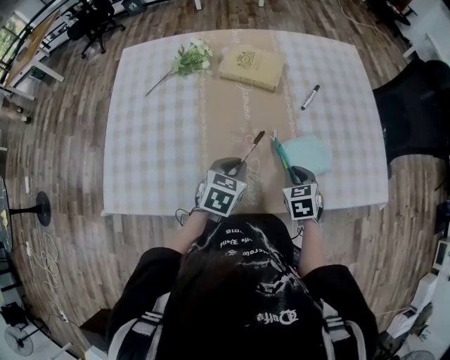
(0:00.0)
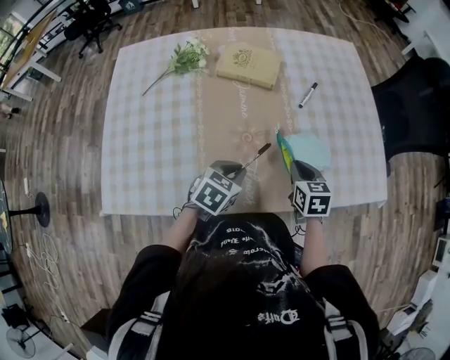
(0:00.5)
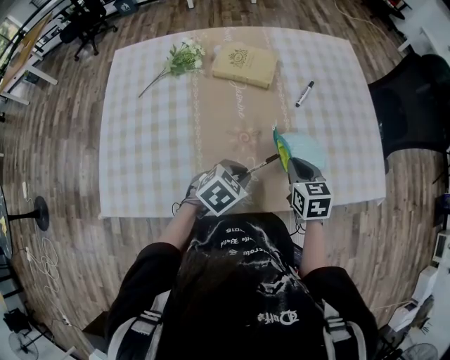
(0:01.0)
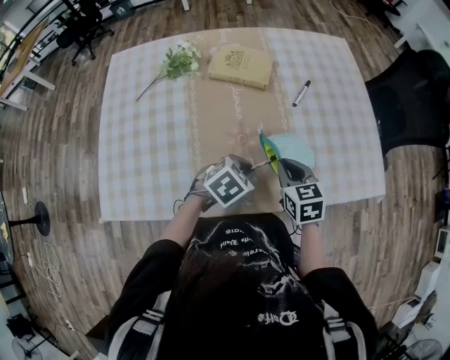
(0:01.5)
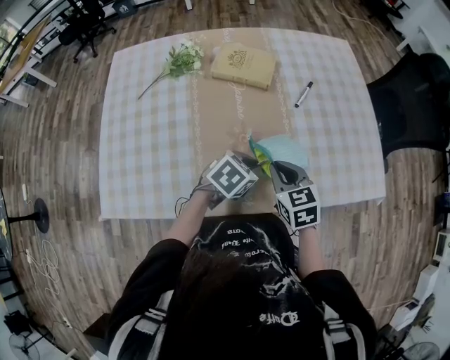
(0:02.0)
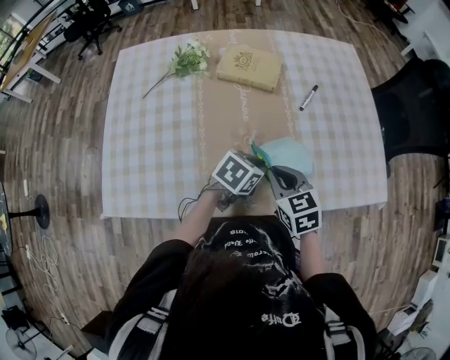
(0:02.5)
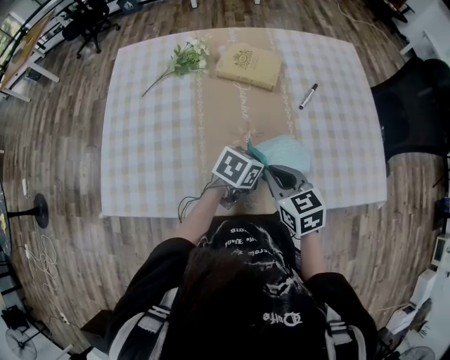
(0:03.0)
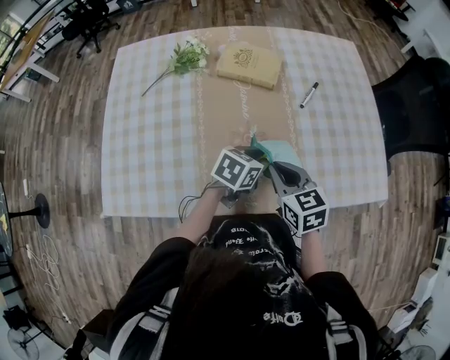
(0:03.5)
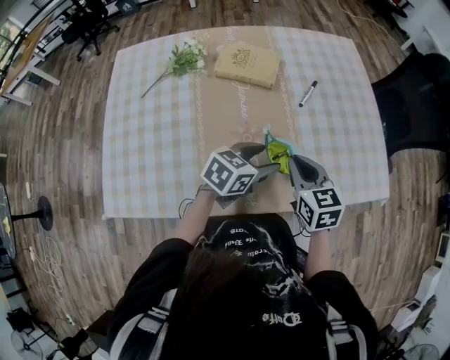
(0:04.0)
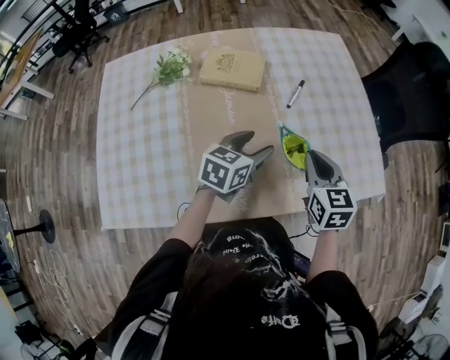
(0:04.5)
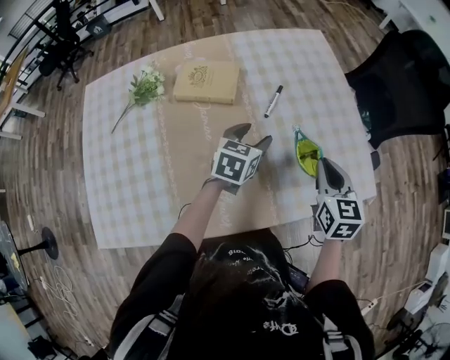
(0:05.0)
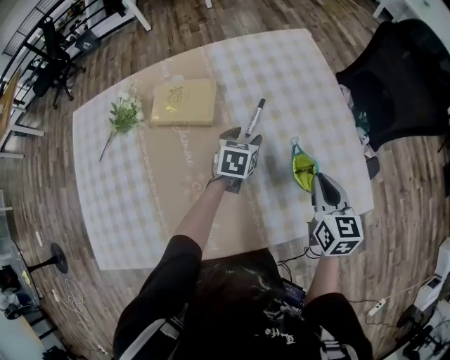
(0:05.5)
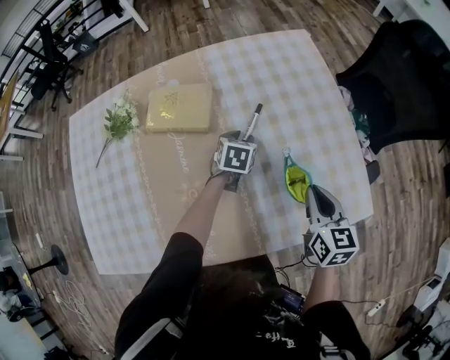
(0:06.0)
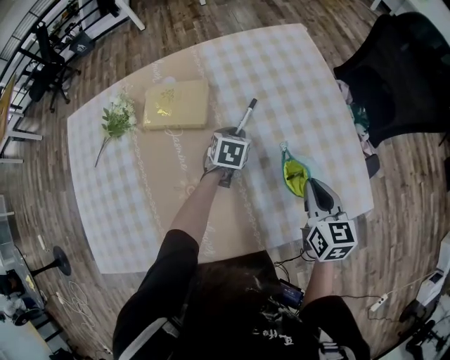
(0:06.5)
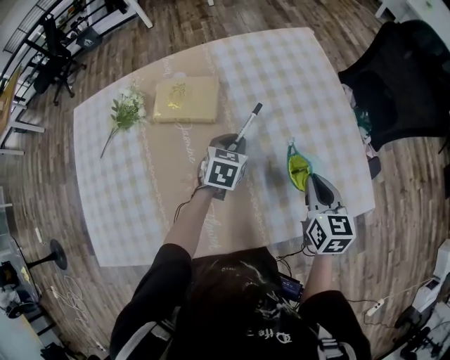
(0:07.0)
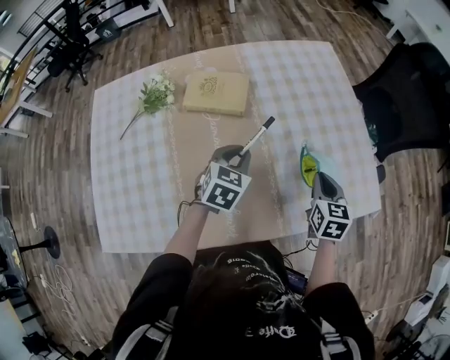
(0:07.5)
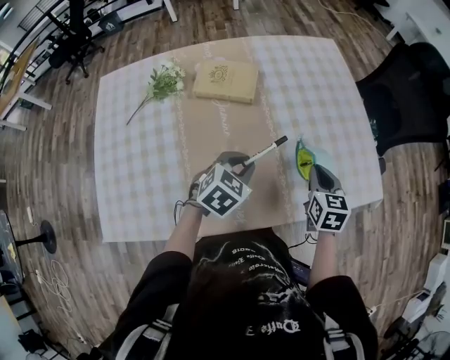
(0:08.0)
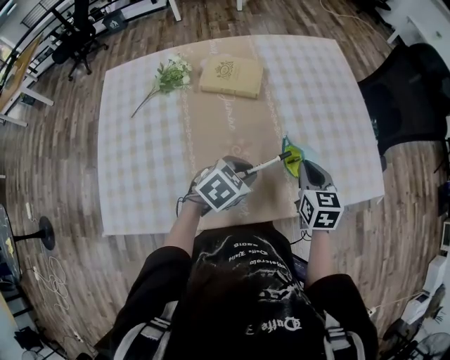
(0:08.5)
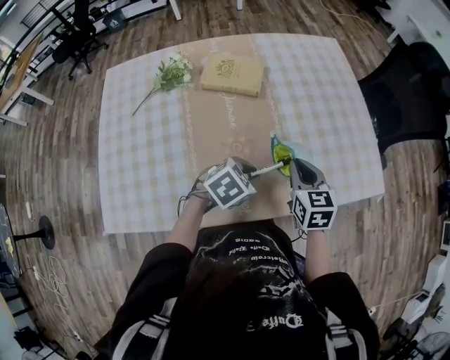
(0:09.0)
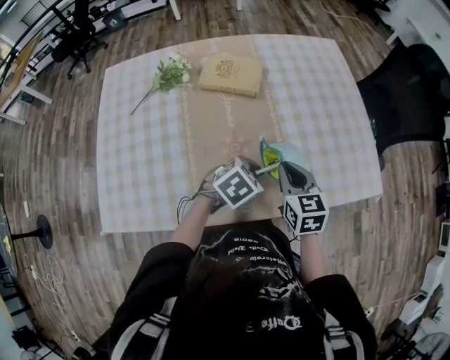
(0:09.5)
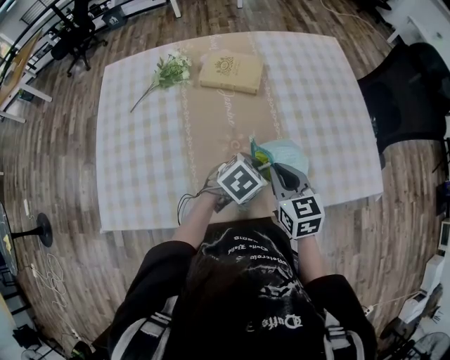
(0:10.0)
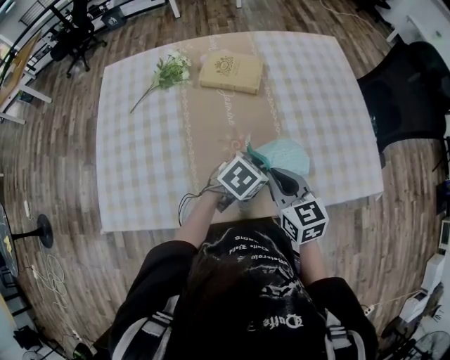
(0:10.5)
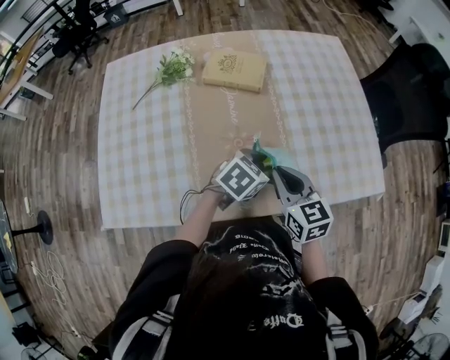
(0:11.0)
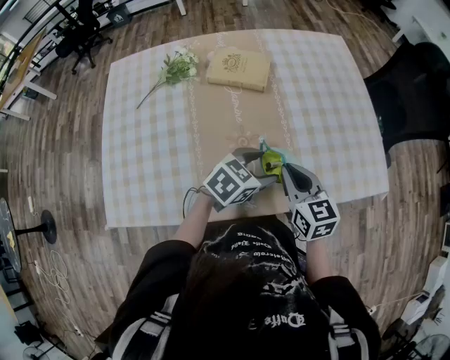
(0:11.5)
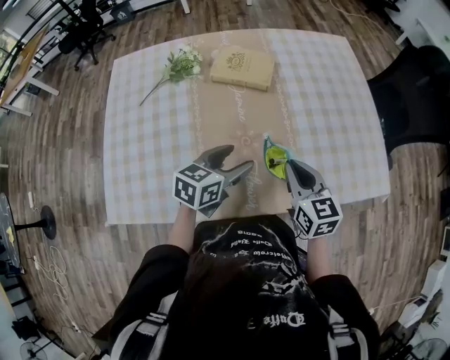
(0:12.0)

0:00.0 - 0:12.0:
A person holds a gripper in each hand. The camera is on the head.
0:00.0 - 0:02.0: The right gripper shifts some 10 cm upward and to the left, while the left gripper goes roughly 5 cm to the right, and rotates approximately 30 degrees.
0:02.0 - 0:04.0: The right gripper changes place by some 5 cm. The left gripper shifts by approximately 5 cm, swivels some 20 degrees, and opens.
0:04.0 - 0:06.0: The left gripper travels forward and downward by roughly 35 cm, and turns by some 30 degrees. Meanwhile the right gripper goes some 25 cm to the right and forward, and changes its angle by approximately 20 degrees.
0:06.0 - 0:08.0: The right gripper is displaced to the left and backward by some 15 cm. The left gripper is displaced backward and upward by some 30 cm, and changes its angle by some 20 degrees.
0:08.0 - 0:10.0: The right gripper moves to the left and backward, roughly 15 cm, and swivels roughly 20 degrees. Meanwhile the left gripper moves approximately 5 cm.
0:10.0 - 0:12.0: The left gripper moves to the left and upward, roughly 10 cm, changes its angle by about 40 degrees, and opens.

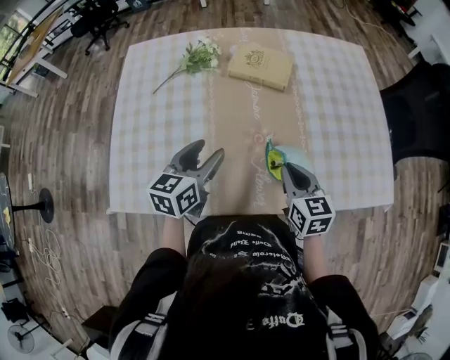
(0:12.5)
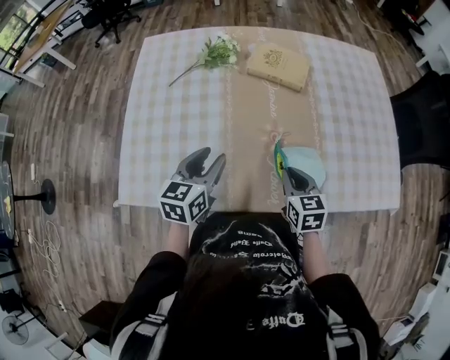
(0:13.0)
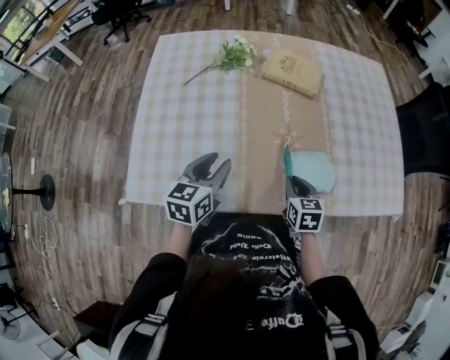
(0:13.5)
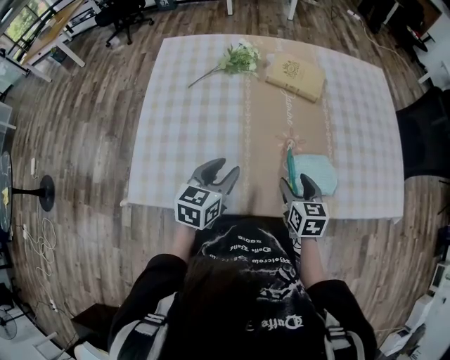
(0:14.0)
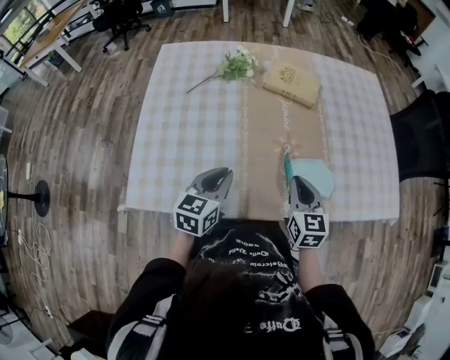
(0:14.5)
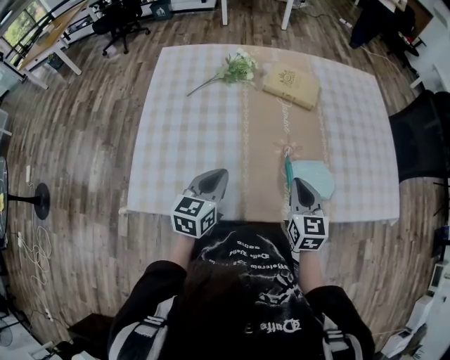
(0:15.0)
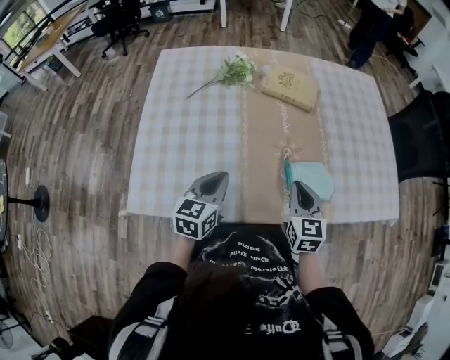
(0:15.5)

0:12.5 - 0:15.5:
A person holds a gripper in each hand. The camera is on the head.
0:12.5 - 0:14.0: The left gripper is displaced to the left and backward by roughly 10 cm. Meanwhile the right gripper shifts roughly 10 cm to the left and downward, and opens up.
0:14.0 - 0:15.5: The right gripper is displaced upward by about 5 cm, and closes up. Meanwhile the left gripper closes.

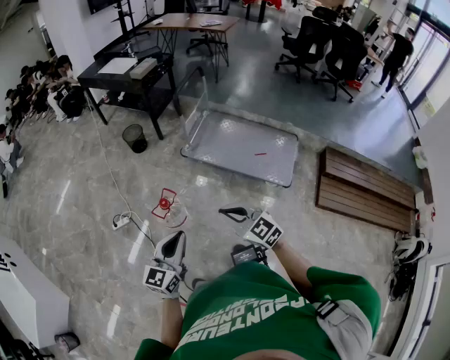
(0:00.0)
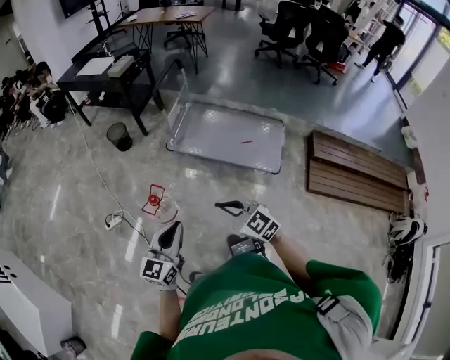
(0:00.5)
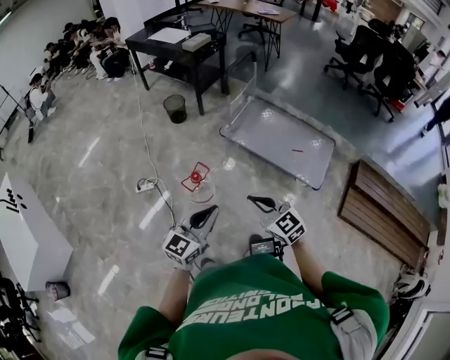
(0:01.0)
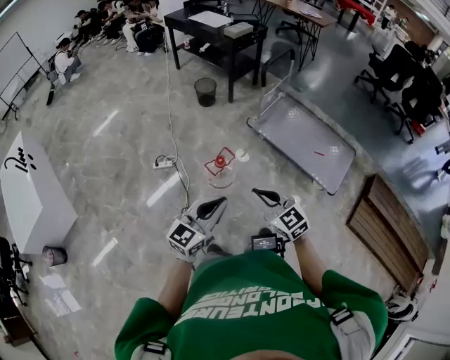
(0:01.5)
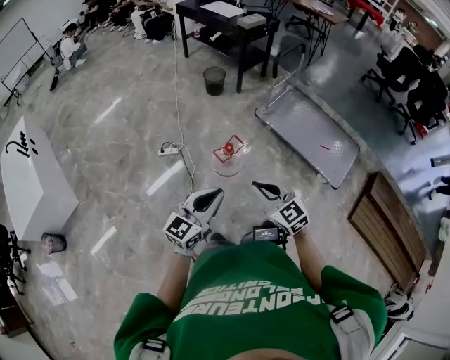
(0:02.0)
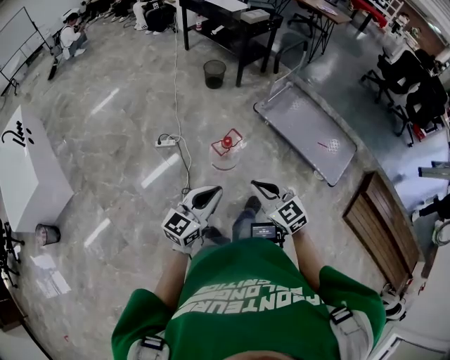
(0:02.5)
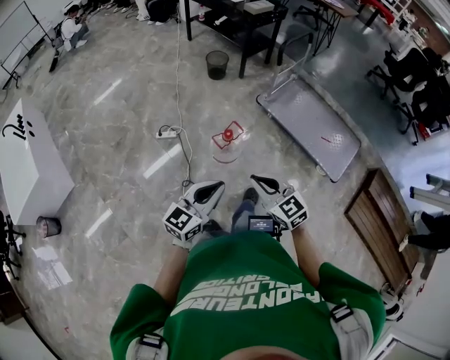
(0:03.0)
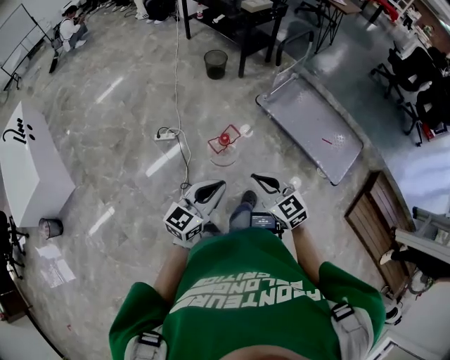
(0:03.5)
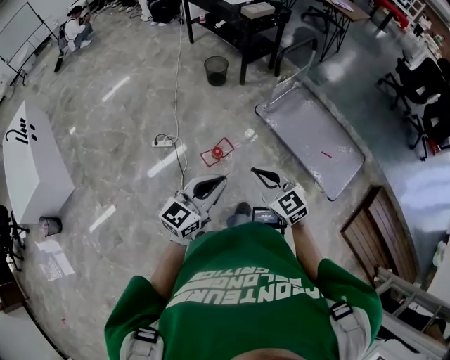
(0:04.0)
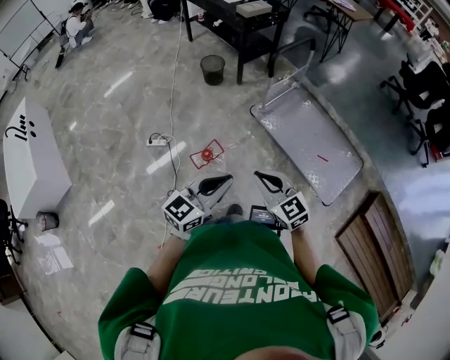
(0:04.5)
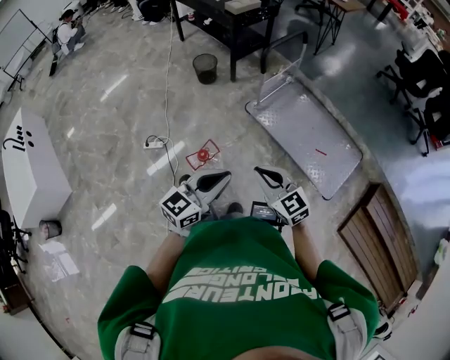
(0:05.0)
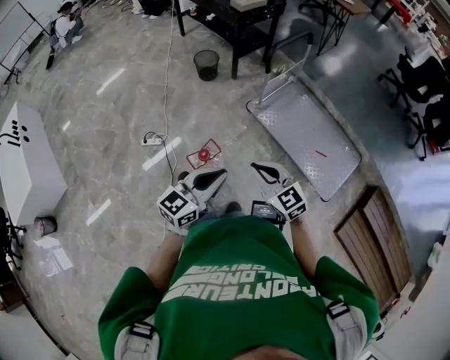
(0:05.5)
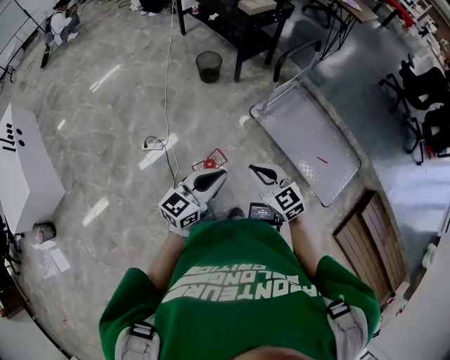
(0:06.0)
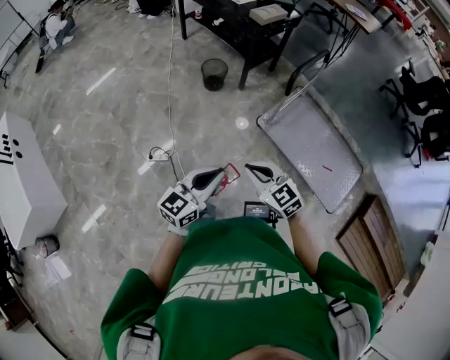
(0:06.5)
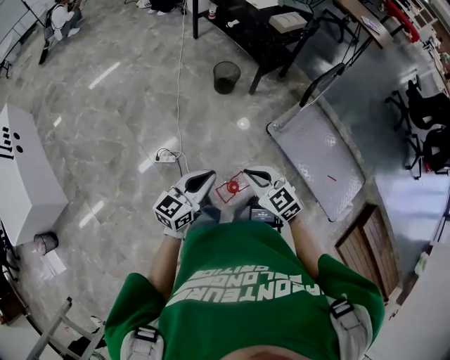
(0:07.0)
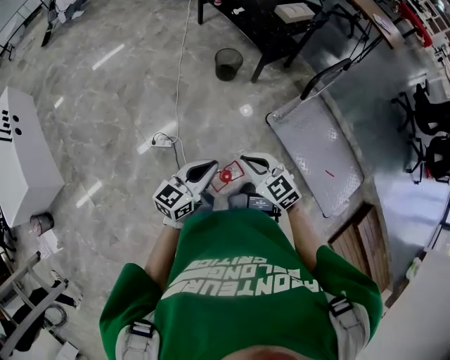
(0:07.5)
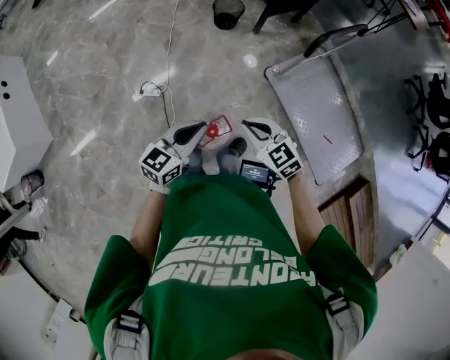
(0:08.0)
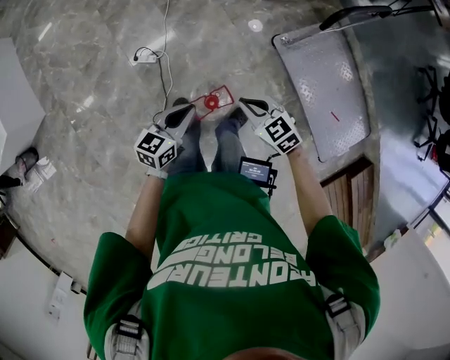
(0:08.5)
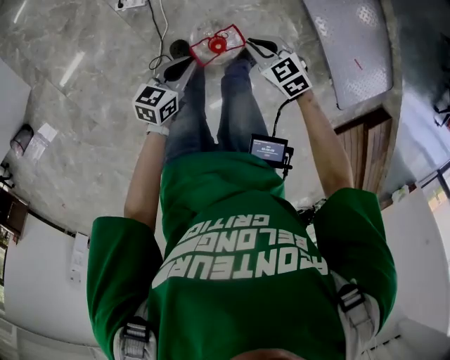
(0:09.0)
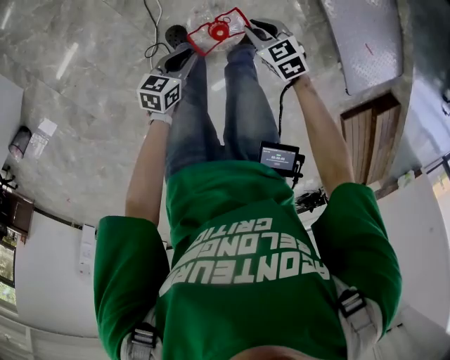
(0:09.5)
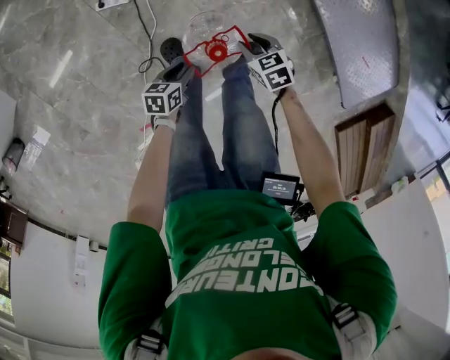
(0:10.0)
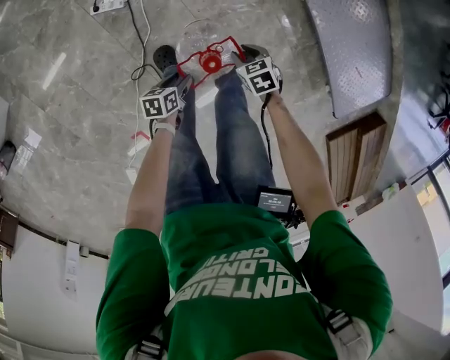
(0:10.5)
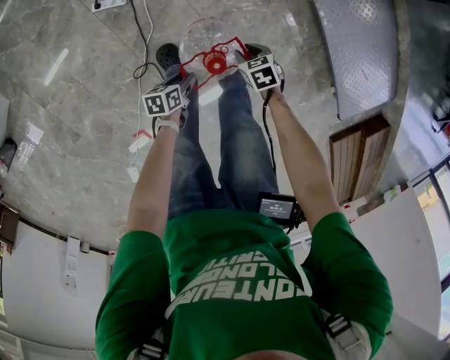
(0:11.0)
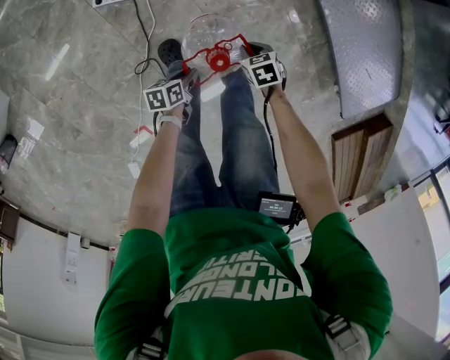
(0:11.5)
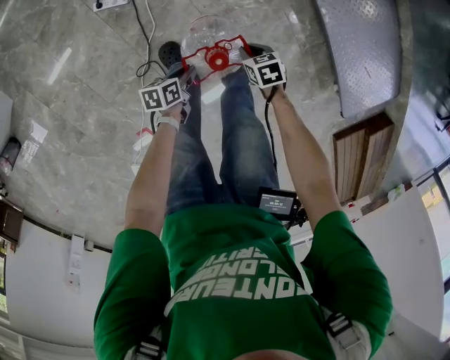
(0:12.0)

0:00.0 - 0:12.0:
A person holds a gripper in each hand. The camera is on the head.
0:00.0 - 0:02.0: The right gripper travels to the left by approximately 20 cm. Meanwhile the left gripper is displaced to the left and backward by about 15 cm.
0:02.0 - 0:04.0: Both grippers move forward and to the right, approximately 20 cm.
0:04.0 - 0:06.0: The grippers both shift forward by some 15 cm.
0:06.0 - 0:08.0: The left gripper travels forward, to the left and downward by roughly 20 cm. The right gripper is displaced forward, downward and to the left by approximately 15 cm.
0:08.0 - 0:10.0: The grippers both shift downward by some 40 cm. The right gripper swivels some 30 degrees, and opens. Meanwhile the left gripper tilts its fingers some 30 degrees downward, and opens.
0:10.0 - 0:12.0: The right gripper is displaced downward by roughly 10 cm, and closes.
